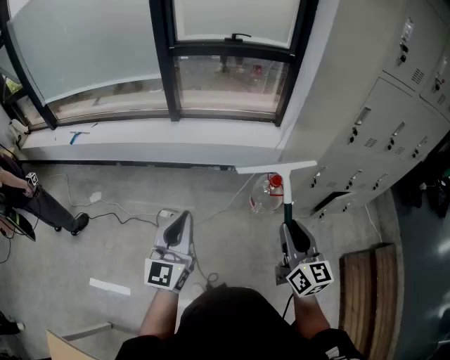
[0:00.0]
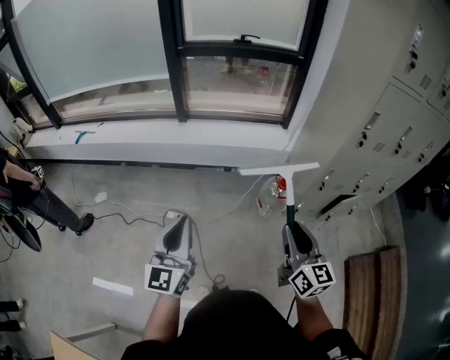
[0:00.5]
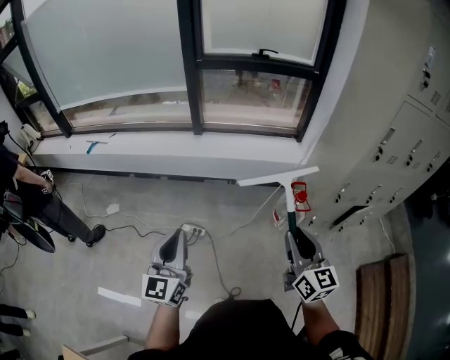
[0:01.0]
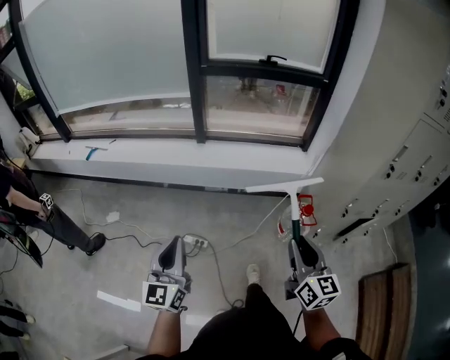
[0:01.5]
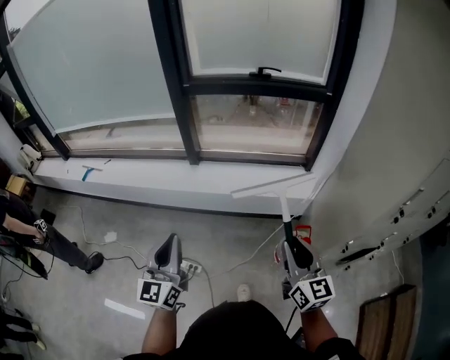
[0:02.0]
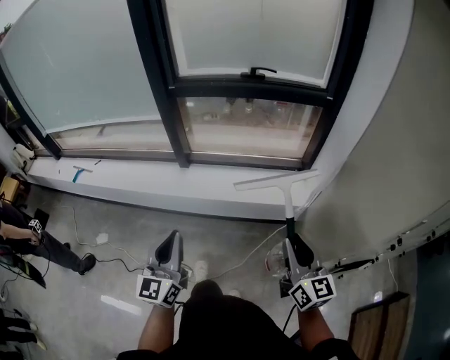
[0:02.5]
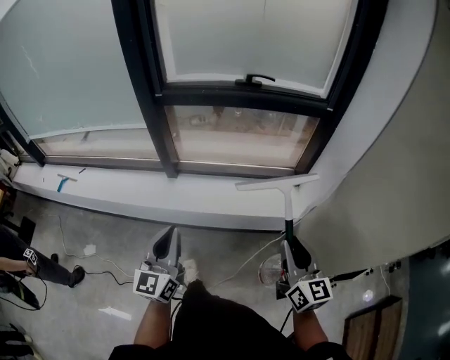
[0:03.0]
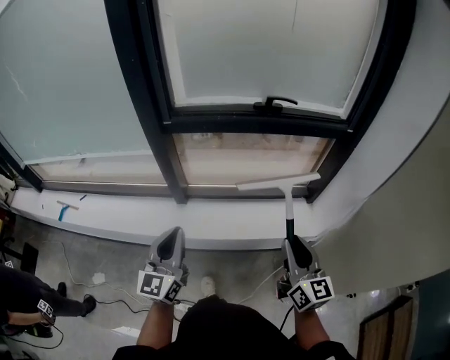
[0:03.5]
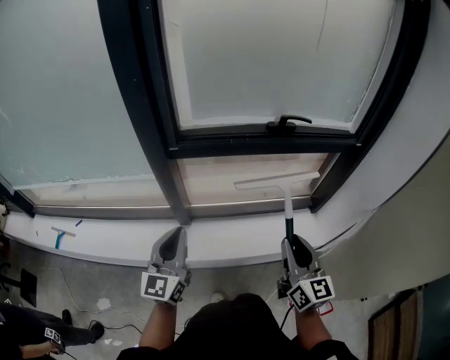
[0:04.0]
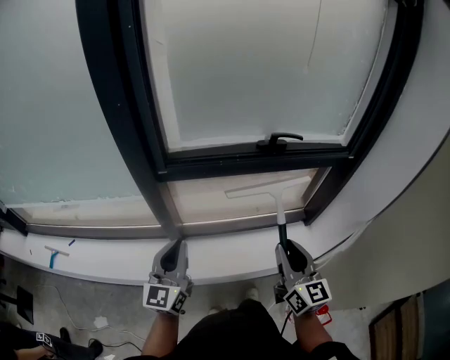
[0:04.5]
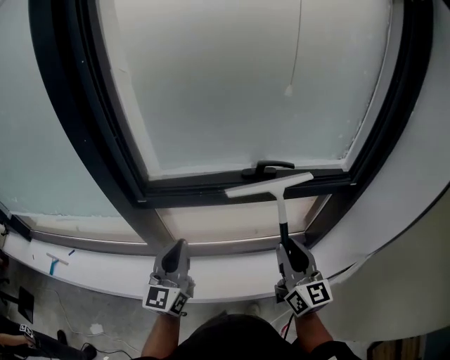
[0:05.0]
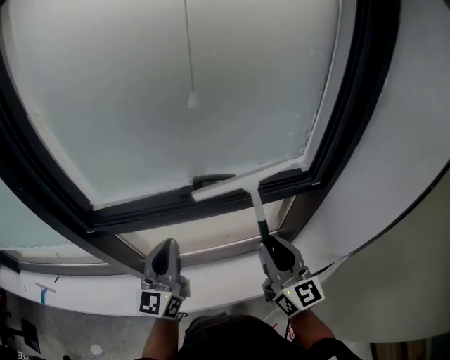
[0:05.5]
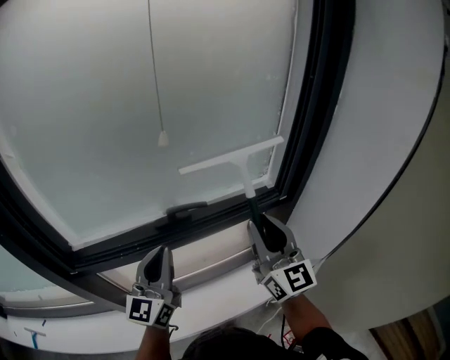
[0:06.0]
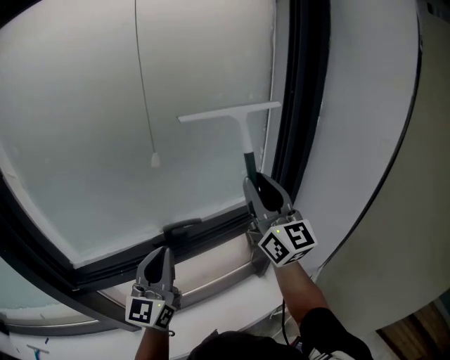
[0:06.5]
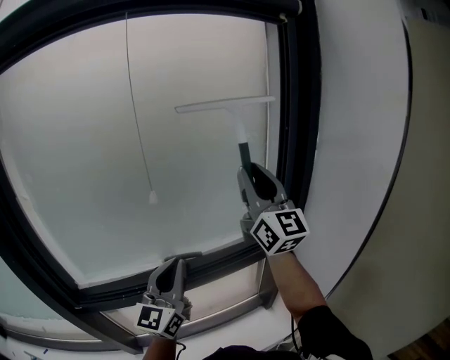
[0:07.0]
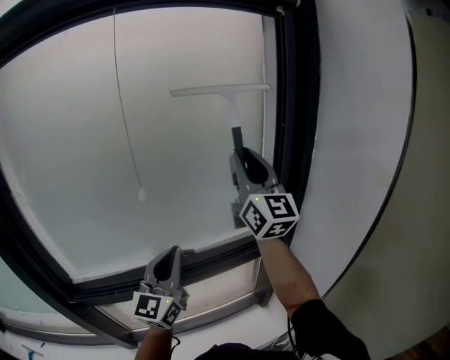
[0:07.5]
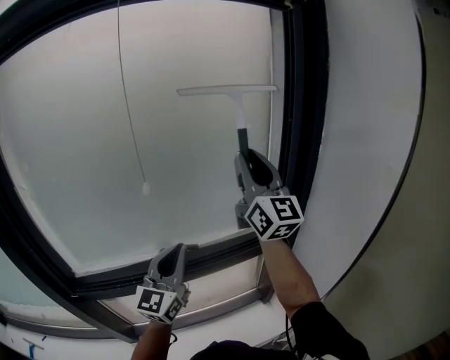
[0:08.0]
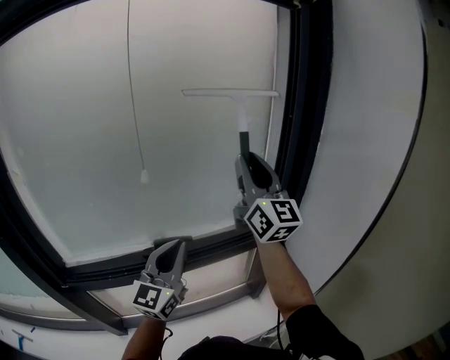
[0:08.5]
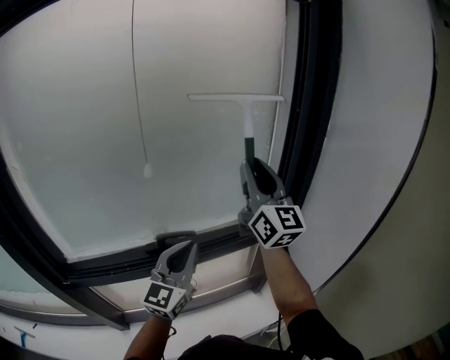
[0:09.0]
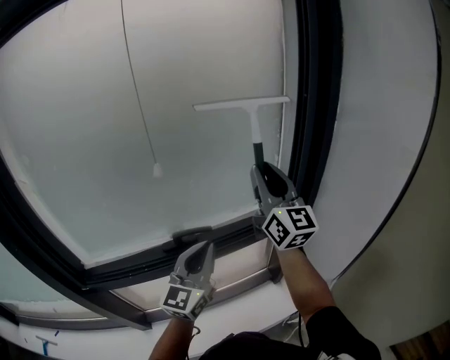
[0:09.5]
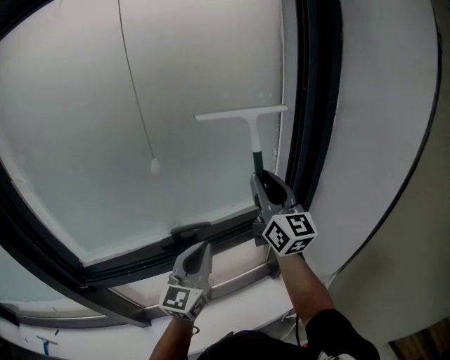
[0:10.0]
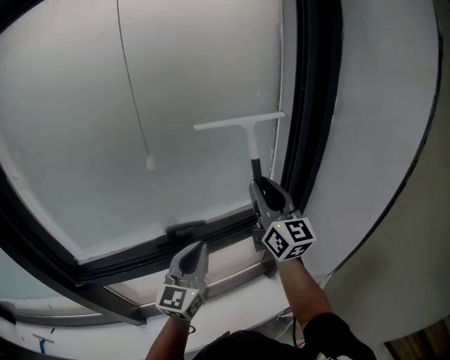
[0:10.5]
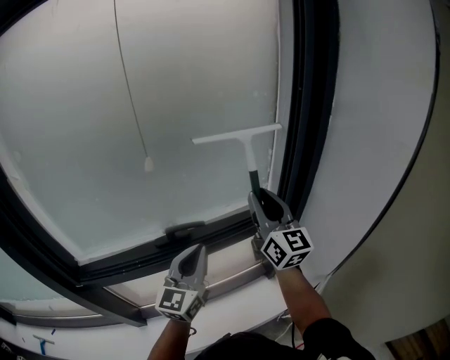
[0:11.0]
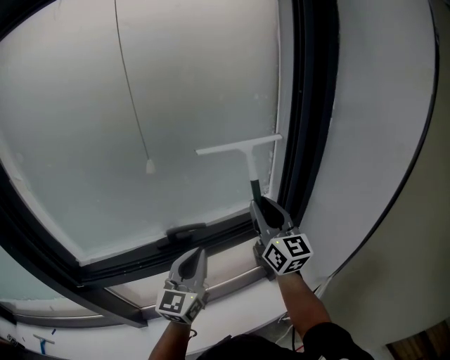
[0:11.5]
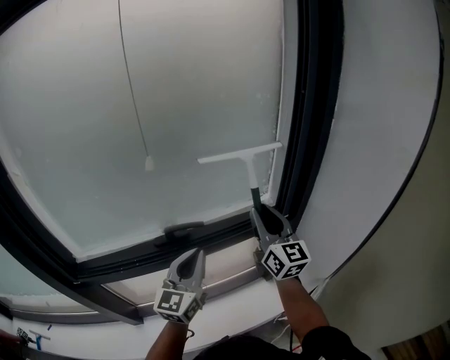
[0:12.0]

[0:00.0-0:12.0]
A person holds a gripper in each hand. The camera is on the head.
0:00.0 to 0:02.0: Both grippers move forward, some 25 cm.
0:02.0 to 0:04.0: Both grippers are carried forward, about 40 cm.
0:04.0 to 0:06.0: The right gripper goes some 35 cm forward, to the right and upward, and turns by roughly 20 degrees; the left gripper travels to the right and forward by roughly 35 cm, and rotates some 20 degrees.
0:06.0 to 0:08.0: The right gripper travels upward and forward by some 25 cm, and turns by some 20 degrees. Meanwhile the left gripper moves to the right, forward and upward, approximately 15 cm.
0:08.0 to 0:10.0: The right gripper shifts some 10 cm downward. Meanwhile the left gripper is displaced downward by roughly 5 cm.
0:10.0 to 0:12.0: The right gripper heads downward, covering approximately 10 cm.

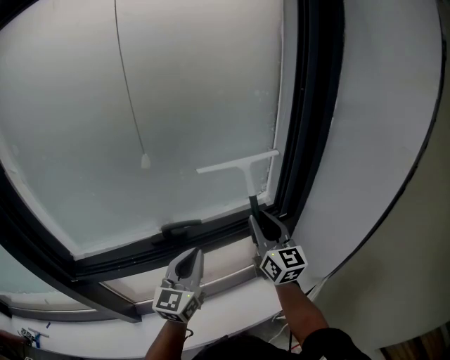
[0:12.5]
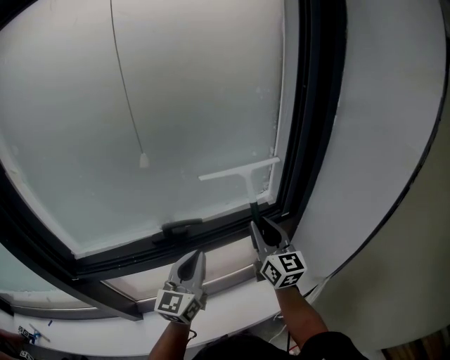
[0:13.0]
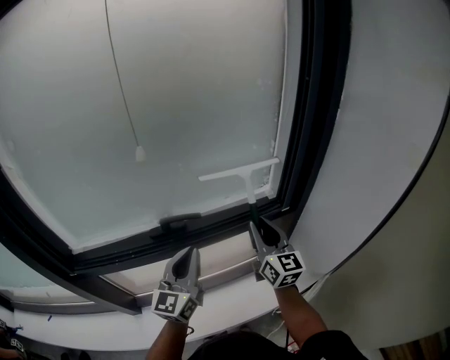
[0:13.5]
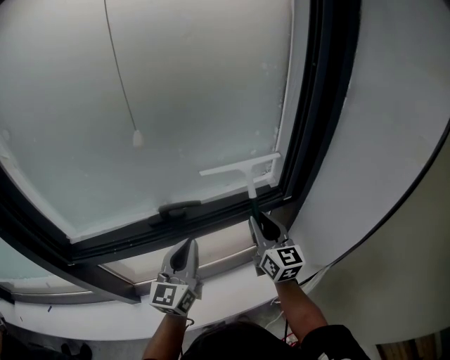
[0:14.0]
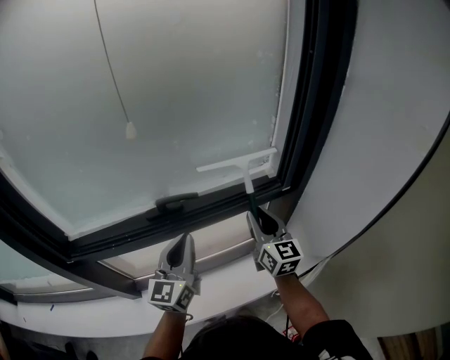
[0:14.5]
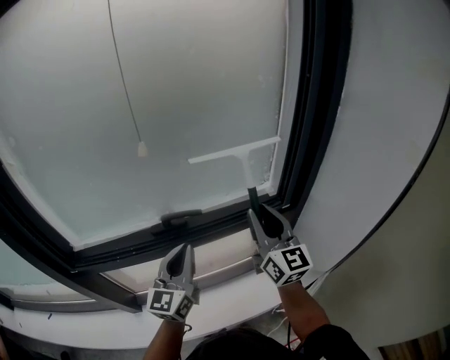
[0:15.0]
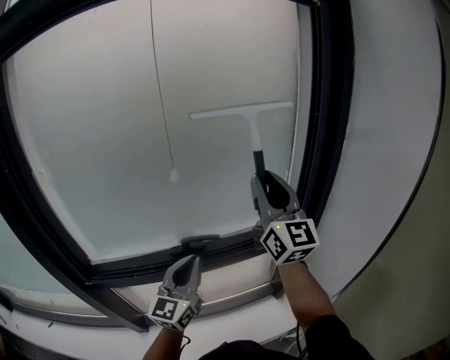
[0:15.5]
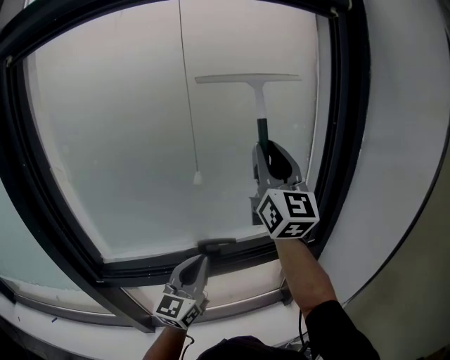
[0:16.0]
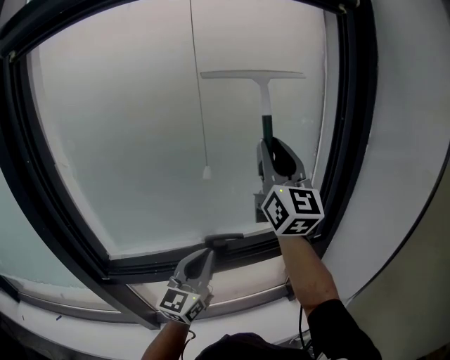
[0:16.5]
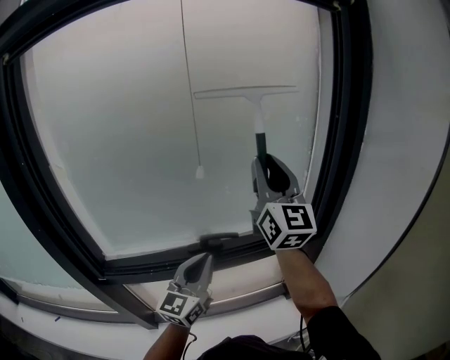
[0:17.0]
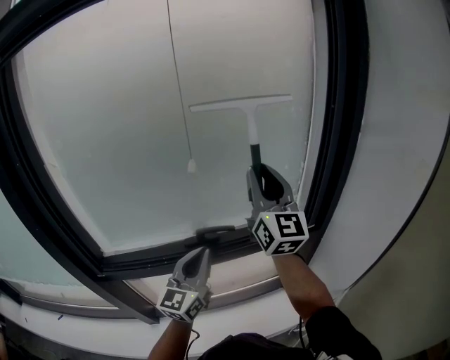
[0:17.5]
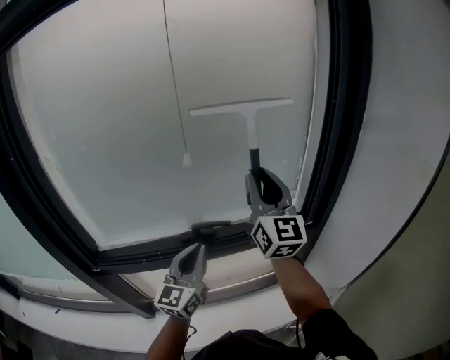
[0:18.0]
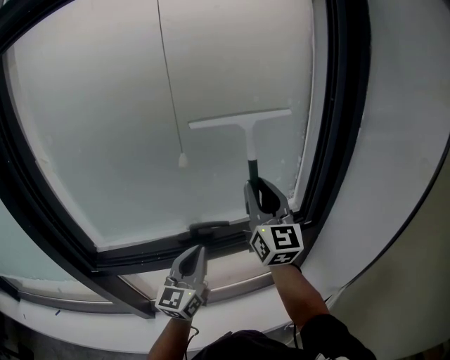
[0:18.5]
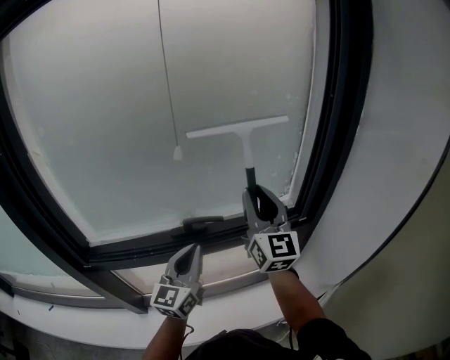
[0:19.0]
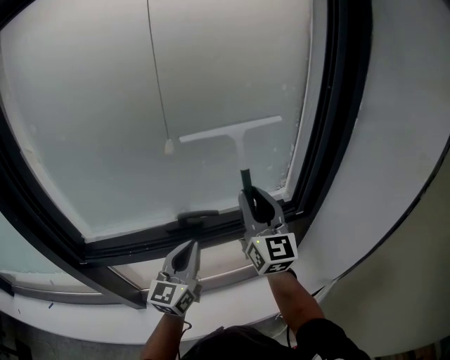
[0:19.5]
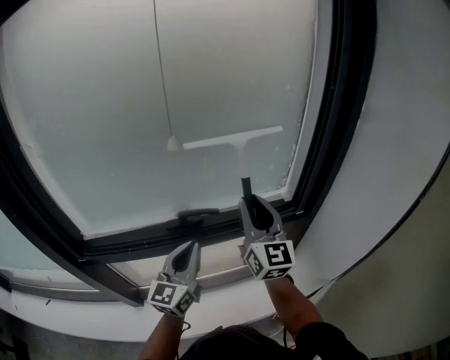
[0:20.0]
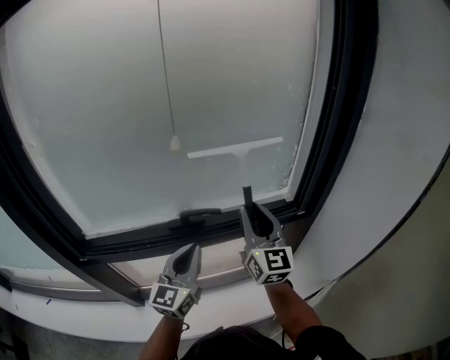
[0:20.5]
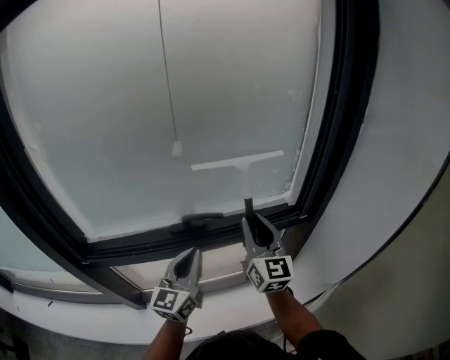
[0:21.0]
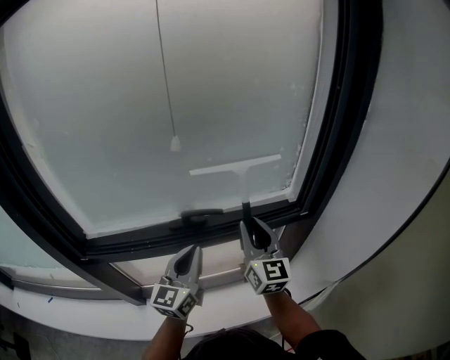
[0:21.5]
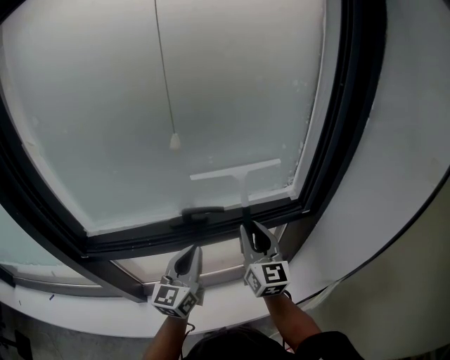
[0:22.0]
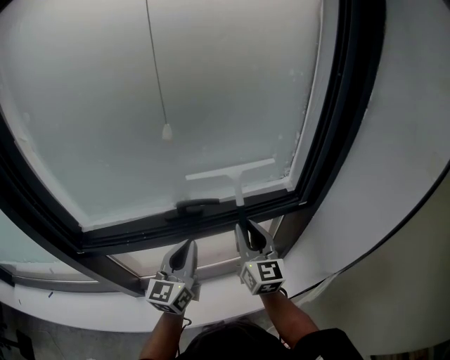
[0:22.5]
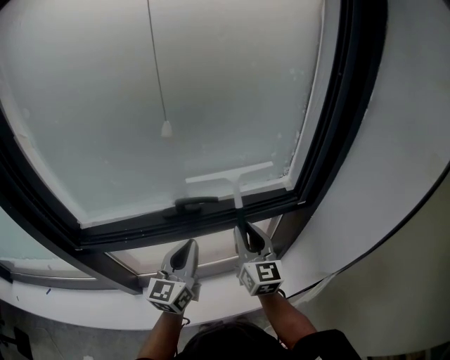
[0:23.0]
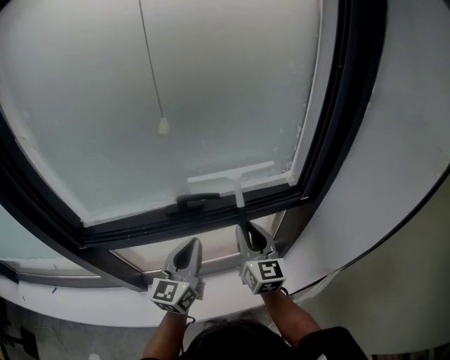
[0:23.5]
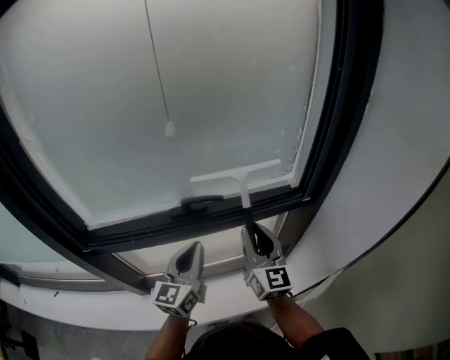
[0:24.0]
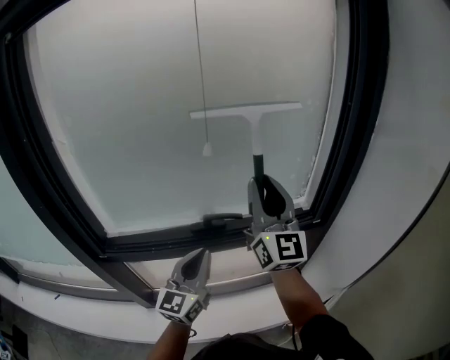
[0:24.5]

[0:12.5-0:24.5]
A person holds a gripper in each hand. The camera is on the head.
0:12.5 to 0:14.5: The right gripper moves downward, about 10 cm.
0:14.5 to 0:16.5: The left gripper heads upward, covering some 10 cm; the right gripper heads upward, covering about 35 cm, and tips its fingers upward by about 30 degrees.
0:16.5 to 0:18.5: The right gripper moves downward, about 15 cm.
0:18.5 to 0:20.5: The right gripper heads downward, covering roughly 10 cm.
0:20.5 to 0:22.5: The right gripper heads downward, covering about 10 cm.
0:22.5 to 0:24.5: The right gripper heads upward, covering some 20 cm, and swivels approximately 30 degrees. Meanwhile the left gripper travels upward by roughly 5 cm.

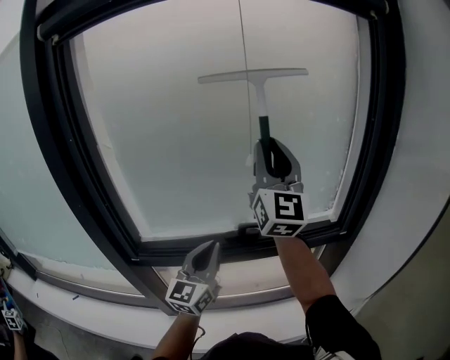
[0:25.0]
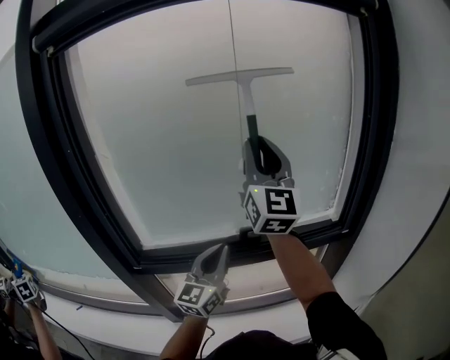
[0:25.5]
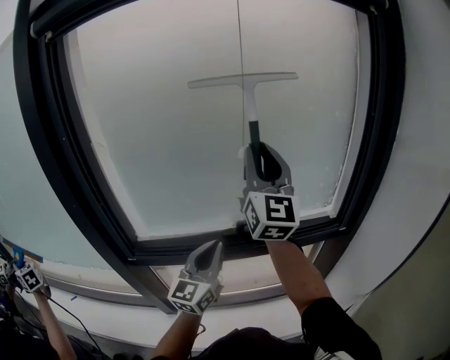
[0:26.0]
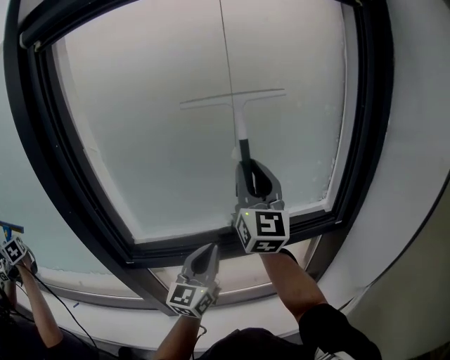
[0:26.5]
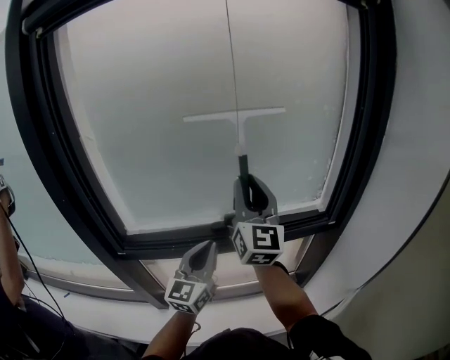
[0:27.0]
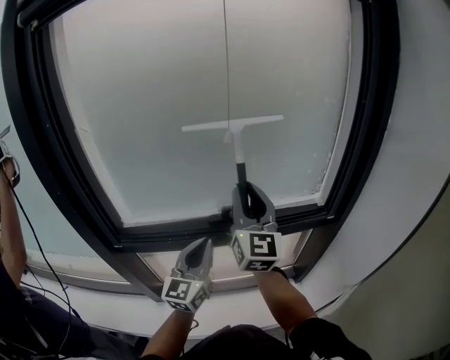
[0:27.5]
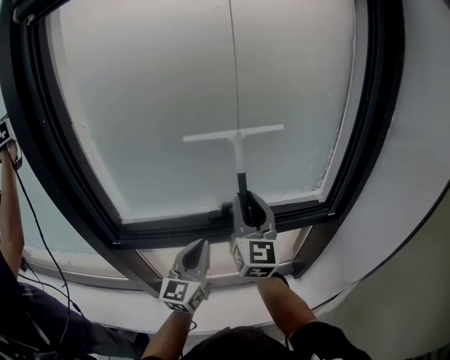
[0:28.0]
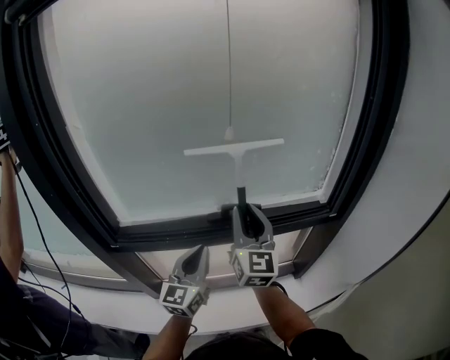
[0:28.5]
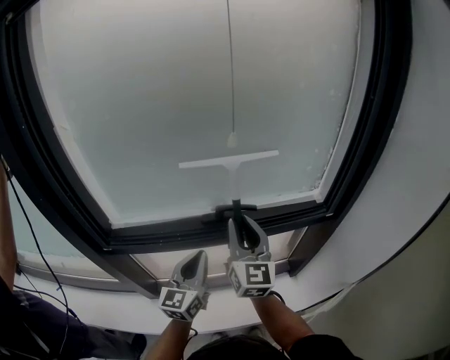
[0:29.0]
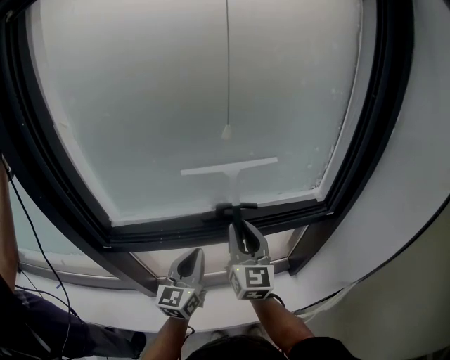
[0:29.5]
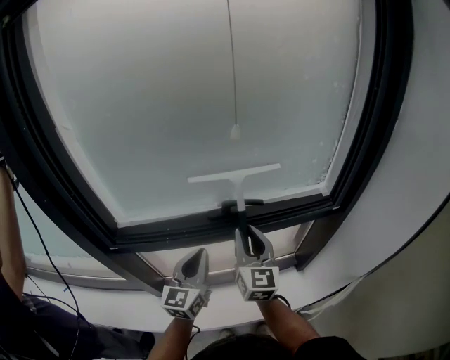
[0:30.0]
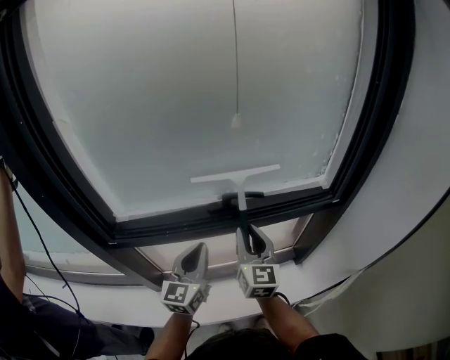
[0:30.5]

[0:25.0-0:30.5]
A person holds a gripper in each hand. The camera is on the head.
0:25.0 to 0:27.0: The right gripper travels downward by roughly 10 cm.
0:27.0 to 0:28.5: The left gripper moves downward, some 5 cm; the right gripper shifts approximately 10 cm downward.
0:28.5 to 0:30.5: The right gripper travels downward by approximately 10 cm.
